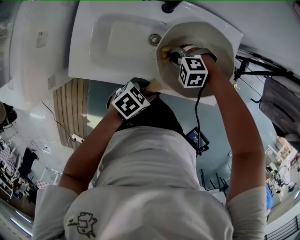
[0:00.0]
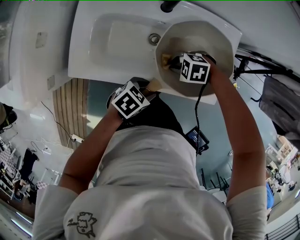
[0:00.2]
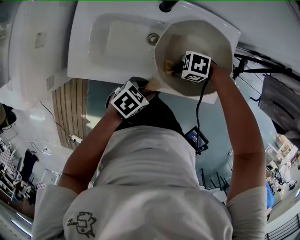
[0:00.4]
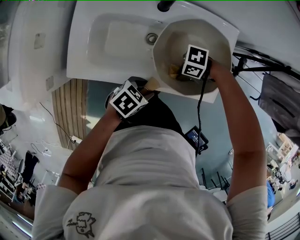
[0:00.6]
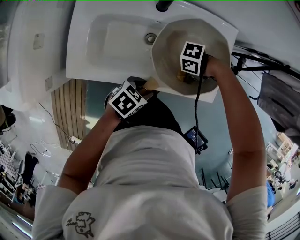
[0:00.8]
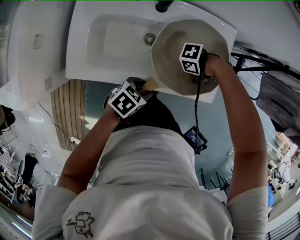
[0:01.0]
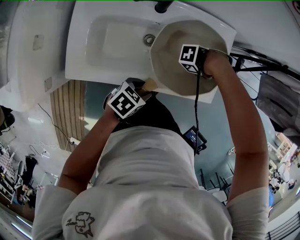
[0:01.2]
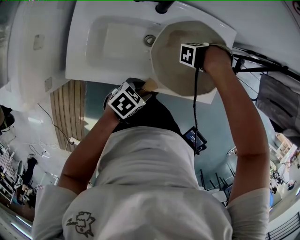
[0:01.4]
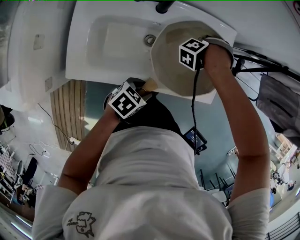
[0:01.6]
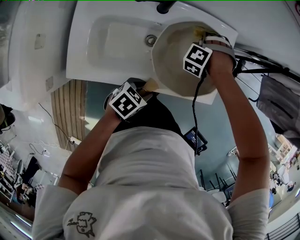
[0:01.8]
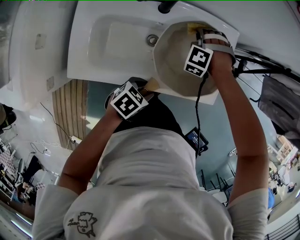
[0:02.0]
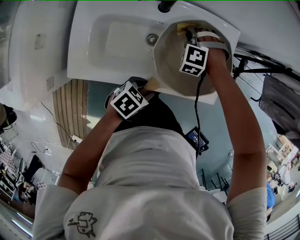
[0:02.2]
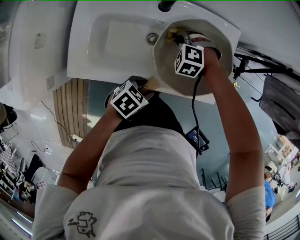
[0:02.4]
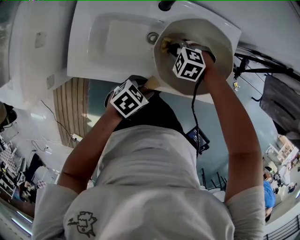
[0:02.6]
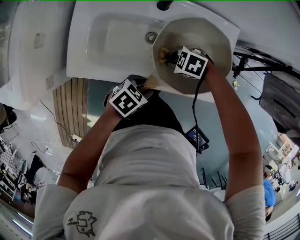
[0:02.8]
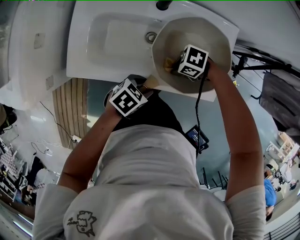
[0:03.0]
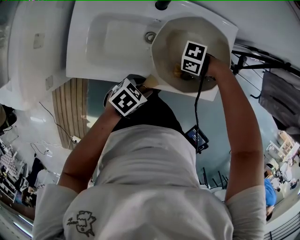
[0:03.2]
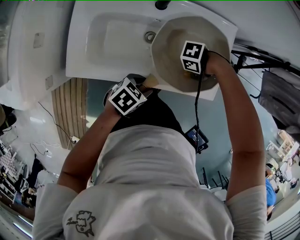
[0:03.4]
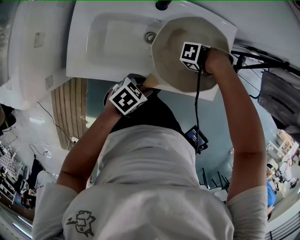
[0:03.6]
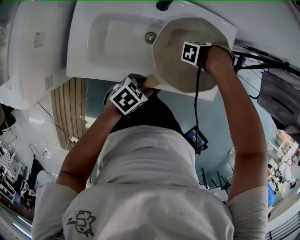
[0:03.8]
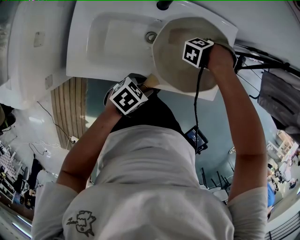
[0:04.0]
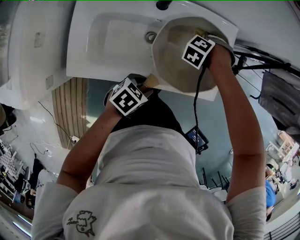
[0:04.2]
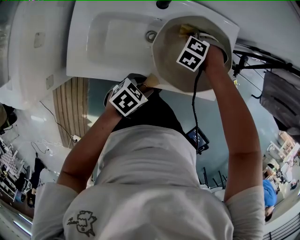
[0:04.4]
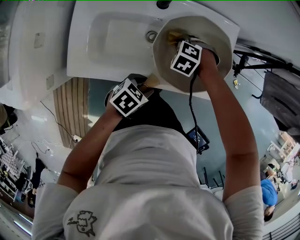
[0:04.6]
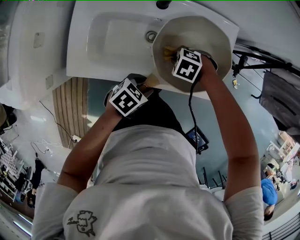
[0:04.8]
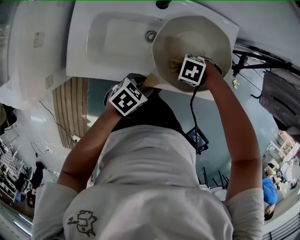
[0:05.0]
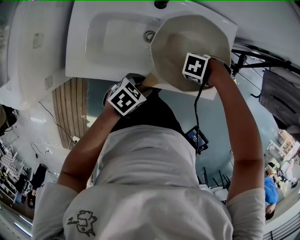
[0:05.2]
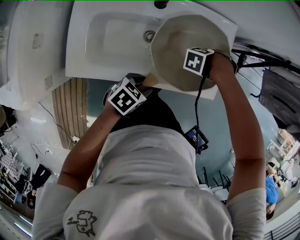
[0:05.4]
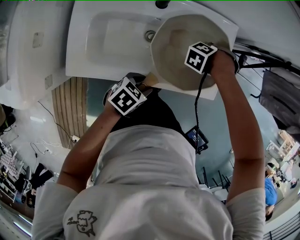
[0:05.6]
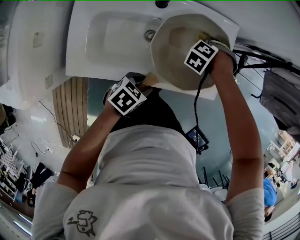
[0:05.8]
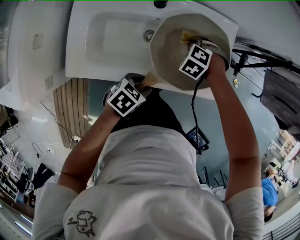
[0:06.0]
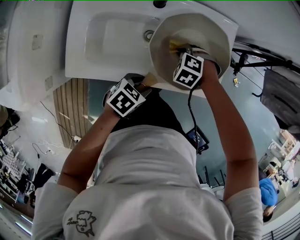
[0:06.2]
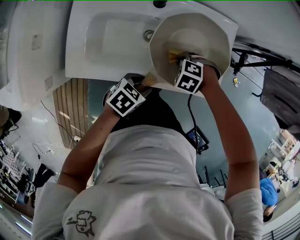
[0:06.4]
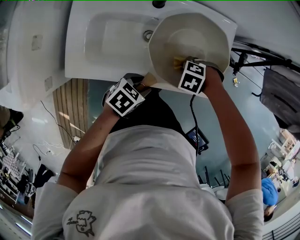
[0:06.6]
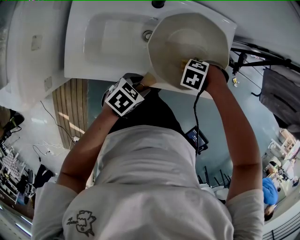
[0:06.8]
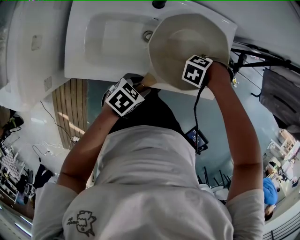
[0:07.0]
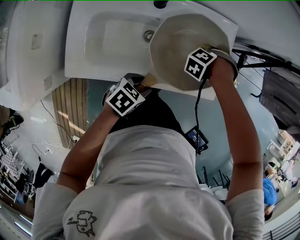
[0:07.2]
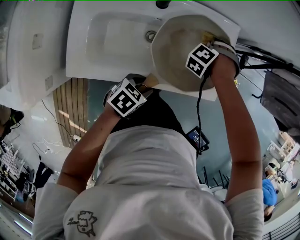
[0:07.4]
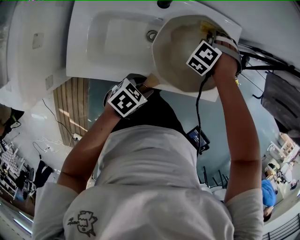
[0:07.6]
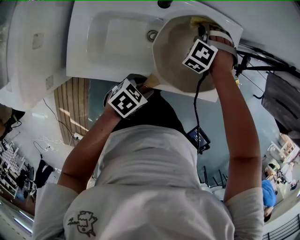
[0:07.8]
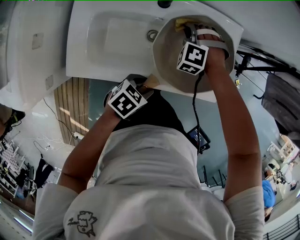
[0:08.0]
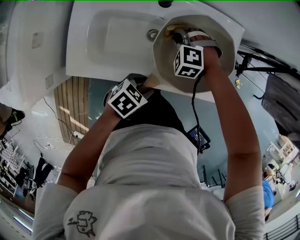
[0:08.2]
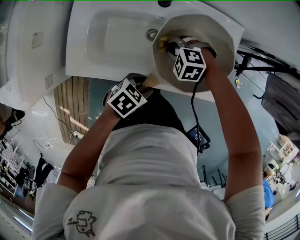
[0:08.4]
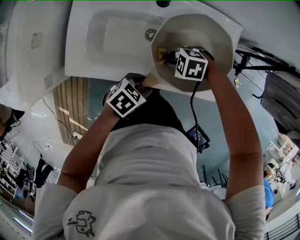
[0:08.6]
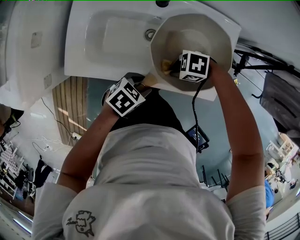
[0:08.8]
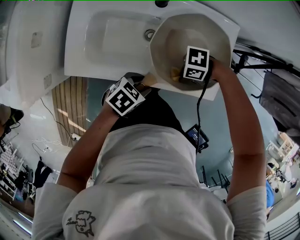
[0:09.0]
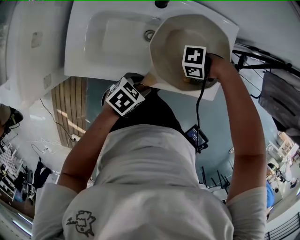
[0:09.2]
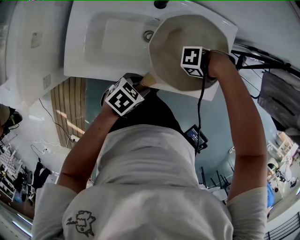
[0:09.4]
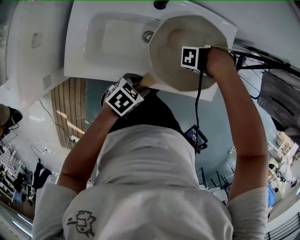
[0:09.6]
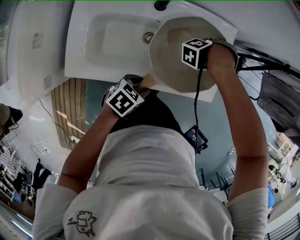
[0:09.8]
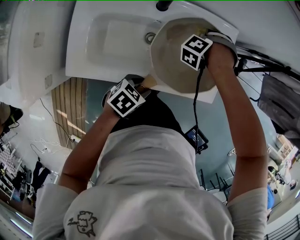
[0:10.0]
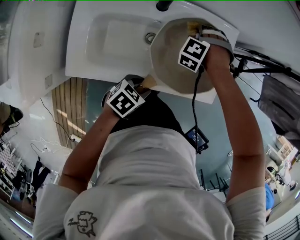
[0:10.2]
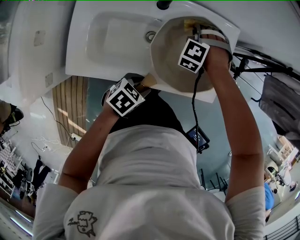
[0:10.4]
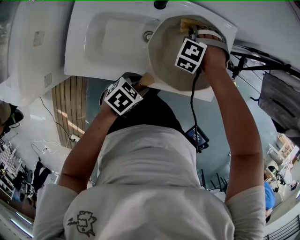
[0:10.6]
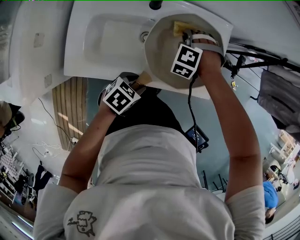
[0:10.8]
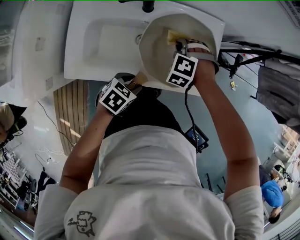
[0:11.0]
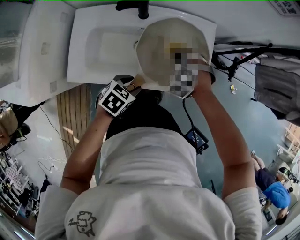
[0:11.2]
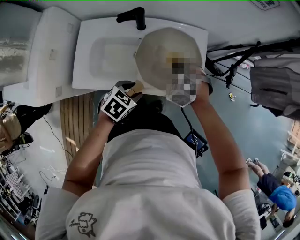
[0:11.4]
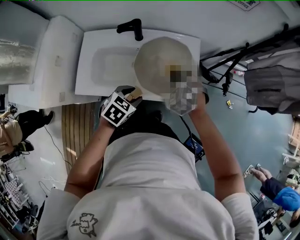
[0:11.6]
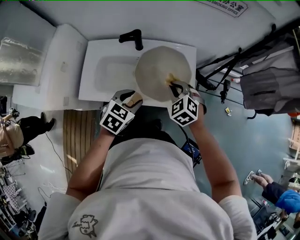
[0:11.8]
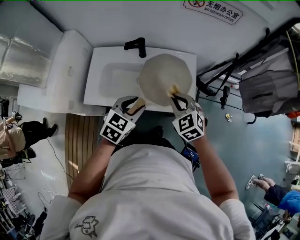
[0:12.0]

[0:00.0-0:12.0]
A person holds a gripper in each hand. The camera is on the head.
0:00.0 to 0:01.6: The right gripper ends up approximately 20 cm from where it was, and rotates approximately 60 degrees.
0:01.6 to 0:03.0: The right gripper changes place by approximately 20 cm, and turns by about 70 degrees.
0:03.0 to 0:04.4: The right gripper shifts by roughly 15 cm, and turns by about 60 degrees.
0:06.0 to 0:07.6: The right gripper moves roughly 10 cm, and swivels some 30 degrees.
0:07.6 to 0:09.0: The right gripper shifts by approximately 25 cm, and changes its angle by about 80 degrees.
0:09.0 to 0:10.4: The right gripper ends up roughly 25 cm from where it was, and swivels some 80 degrees.
0:10.4 to 0:12.0: The right gripper ends up roughly 35 cm from where it was, and rotates around the line of its fingers by roughly 50 degrees, clockwise from behind; the left gripper goes roughly 25 cm upward, and rotates some 40 degrees.

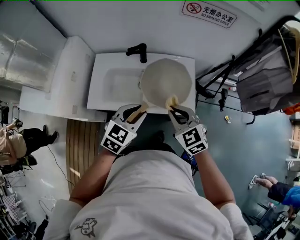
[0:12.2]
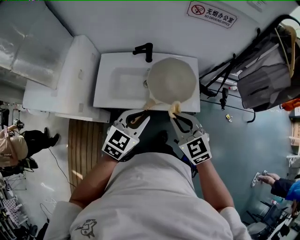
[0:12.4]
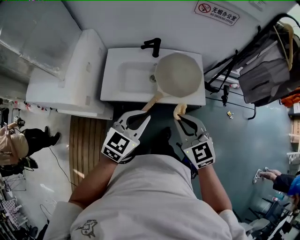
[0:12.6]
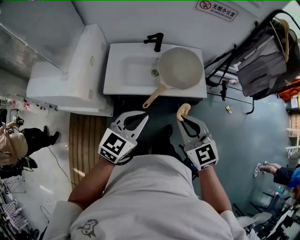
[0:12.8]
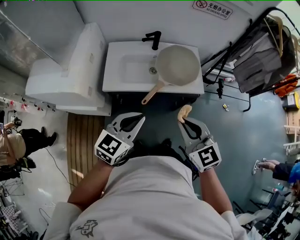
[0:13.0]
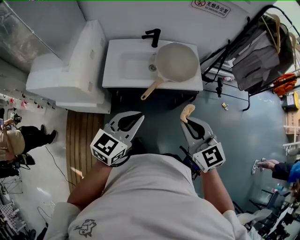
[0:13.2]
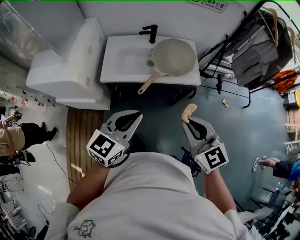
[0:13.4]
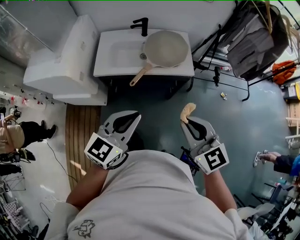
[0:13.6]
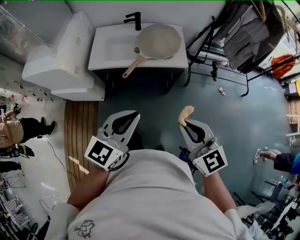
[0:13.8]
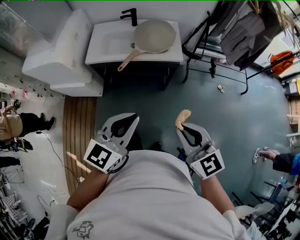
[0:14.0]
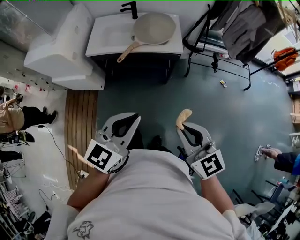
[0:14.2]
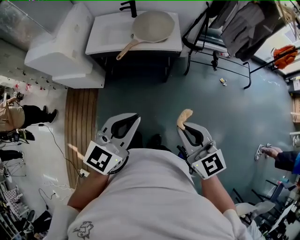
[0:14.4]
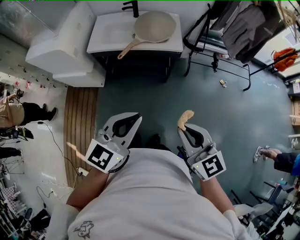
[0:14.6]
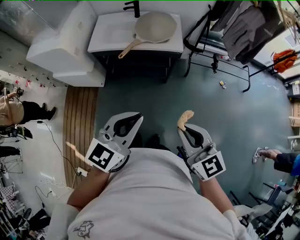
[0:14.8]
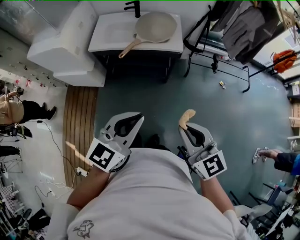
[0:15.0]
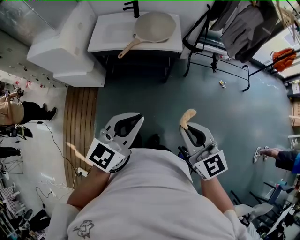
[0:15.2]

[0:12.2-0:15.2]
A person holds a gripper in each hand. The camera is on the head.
0:12.2 to 0:13.8: Both grippers travel together backward, approximately 40 cm. The left gripper changes its angle by roughly 20 degrees, and closes up.
0:13.8 to 0:15.2: Both grippers travel together backward and to the right, some 15 cm.

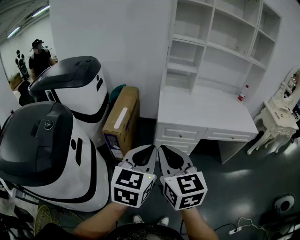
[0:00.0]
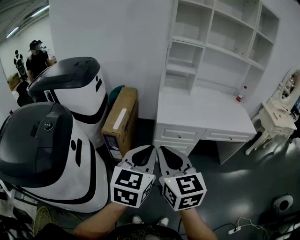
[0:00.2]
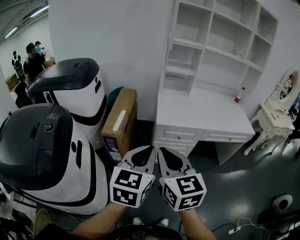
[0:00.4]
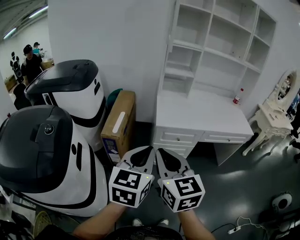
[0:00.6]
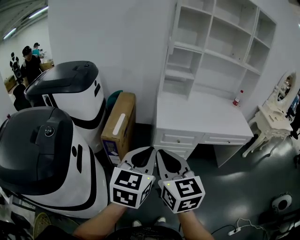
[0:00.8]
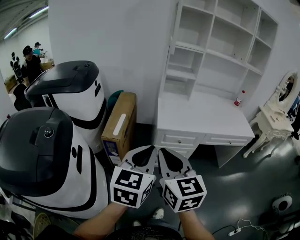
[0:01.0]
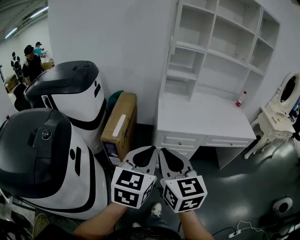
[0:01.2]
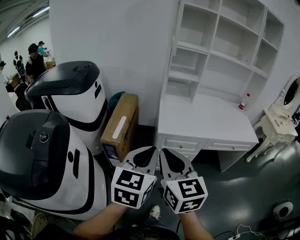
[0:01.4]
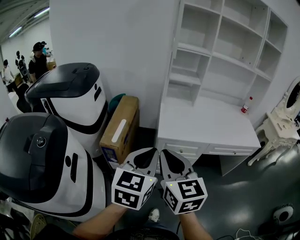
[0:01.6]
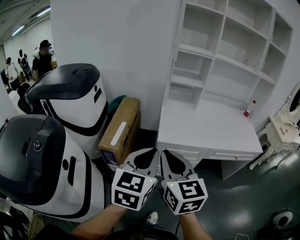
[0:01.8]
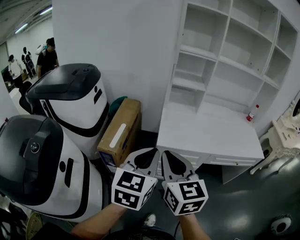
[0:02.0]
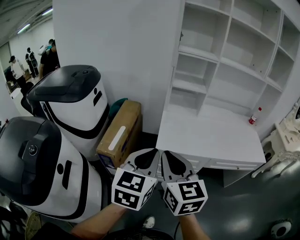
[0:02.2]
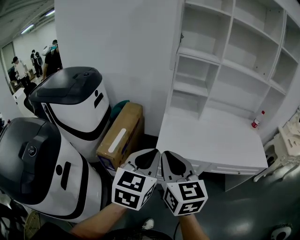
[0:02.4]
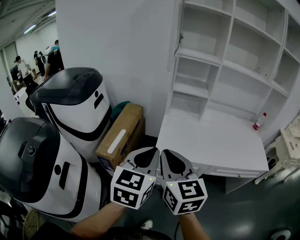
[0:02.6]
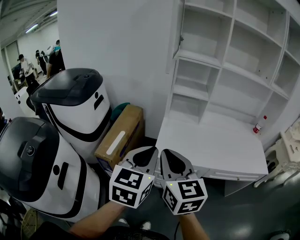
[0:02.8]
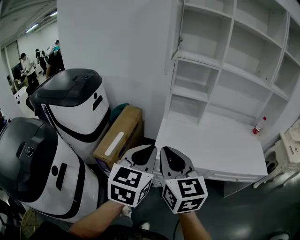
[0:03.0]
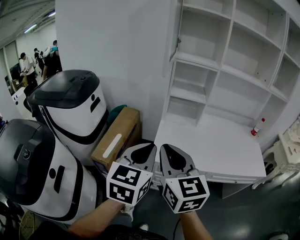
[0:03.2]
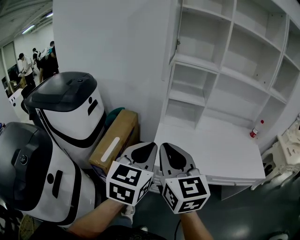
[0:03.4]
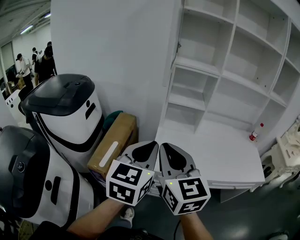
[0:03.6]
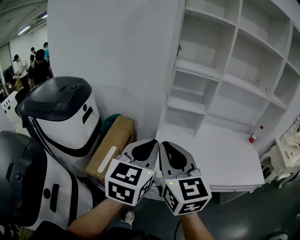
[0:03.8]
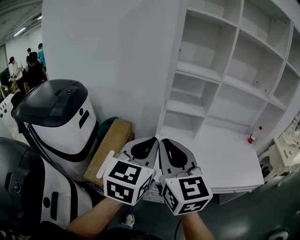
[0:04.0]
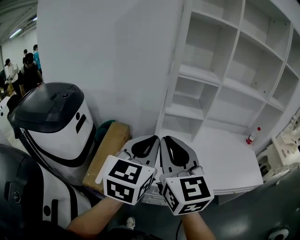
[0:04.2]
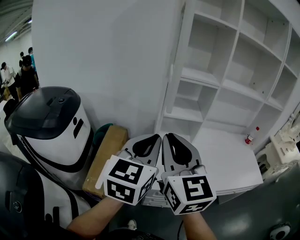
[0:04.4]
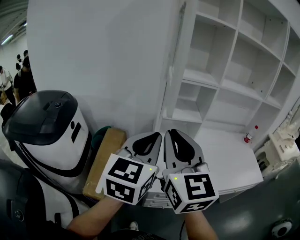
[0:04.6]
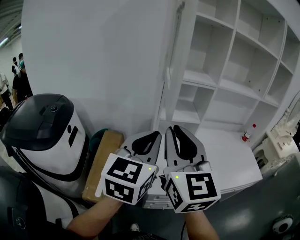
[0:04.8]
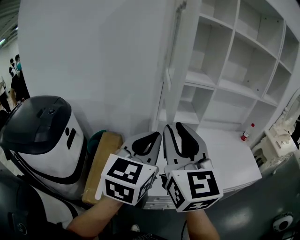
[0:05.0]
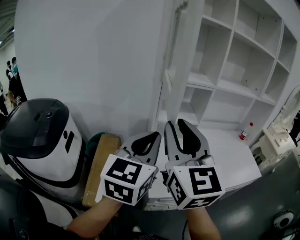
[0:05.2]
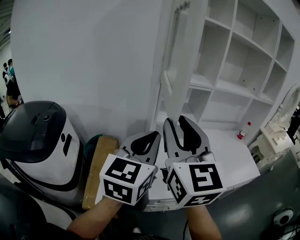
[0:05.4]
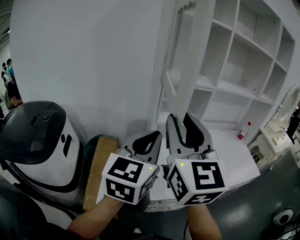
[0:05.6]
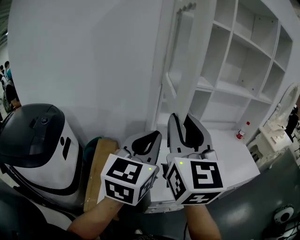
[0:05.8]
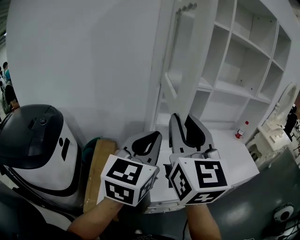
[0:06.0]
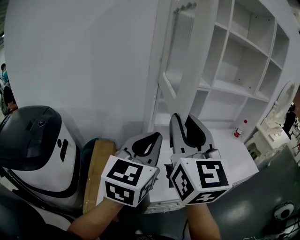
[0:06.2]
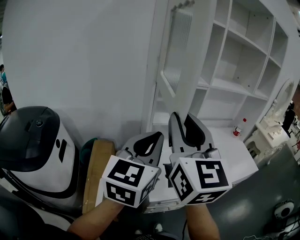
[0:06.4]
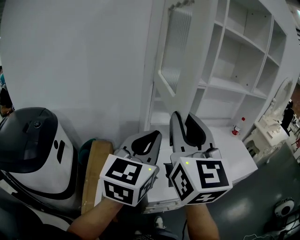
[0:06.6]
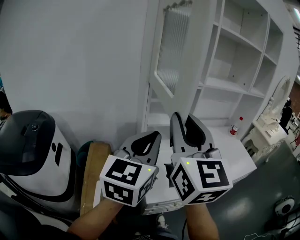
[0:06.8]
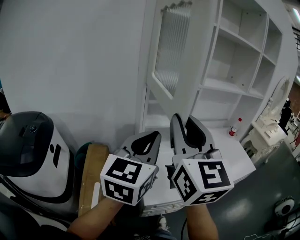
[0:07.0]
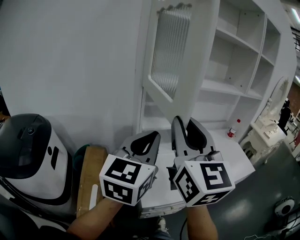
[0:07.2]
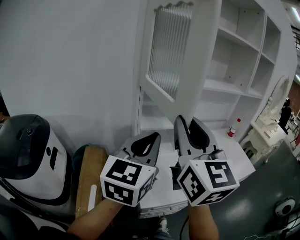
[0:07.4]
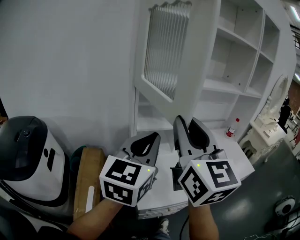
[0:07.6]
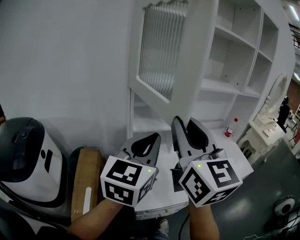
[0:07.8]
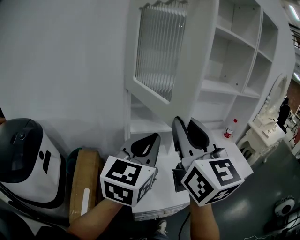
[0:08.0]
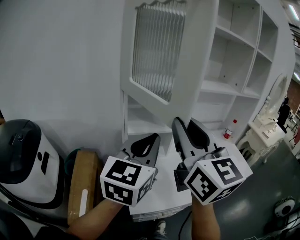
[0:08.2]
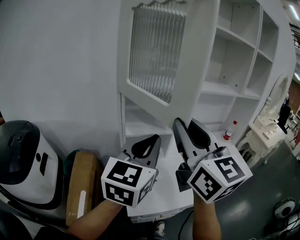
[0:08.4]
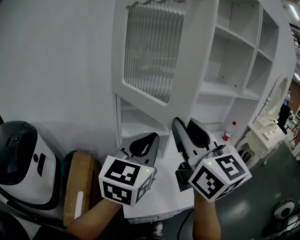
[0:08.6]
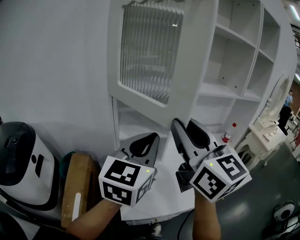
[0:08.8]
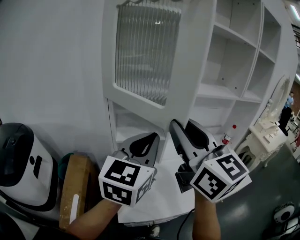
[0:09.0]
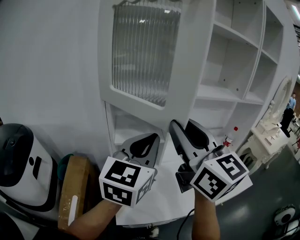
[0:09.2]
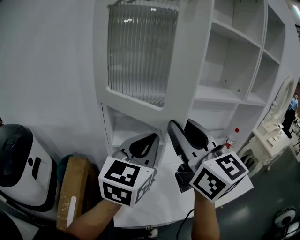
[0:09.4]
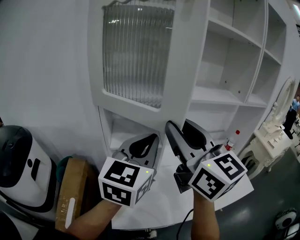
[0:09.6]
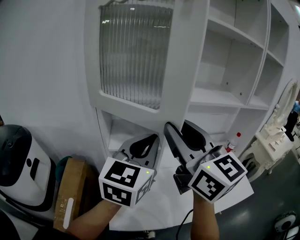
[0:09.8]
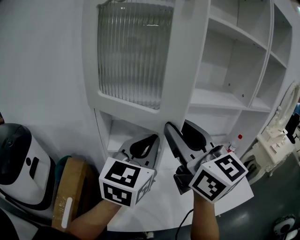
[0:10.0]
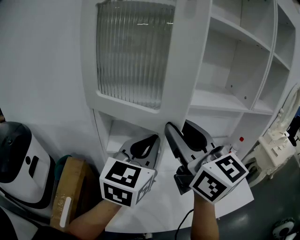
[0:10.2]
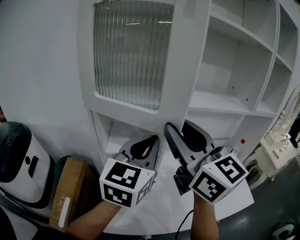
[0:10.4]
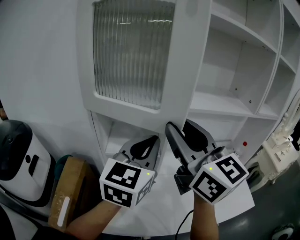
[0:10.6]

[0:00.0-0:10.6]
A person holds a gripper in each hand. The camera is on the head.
0:00.0 to 0:01.6: The grippers both shift forward by approximately 10 cm.
0:01.6 to 0:03.0: Both grippers travel together forward and to the right, some 15 cm.
0:03.0 to 0:04.6: The grippers both shift forward and upward by approximately 20 cm.
0:04.6 to 0:06.0: The left gripper shifts by approximately 5 cm. The right gripper goes approximately 10 cm upward and forward.
0:06.0 to 0:07.6: Both grippers travel together to the right, about 10 cm.
0:07.6 to 0:09.0: The left gripper is displaced to the right and forward by roughly 10 cm. The right gripper heads forward and to the right, covering roughly 10 cm.
0:09.0 to 0:10.6: Both grippers travel together forward and to the right, about 10 cm.
